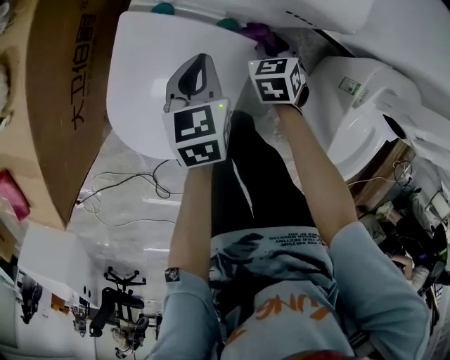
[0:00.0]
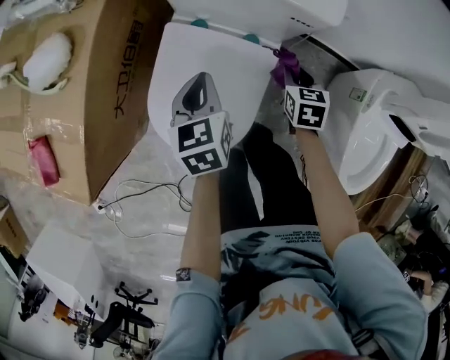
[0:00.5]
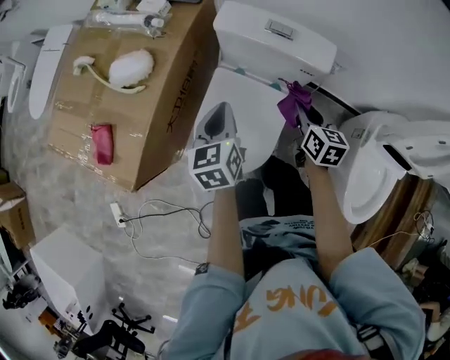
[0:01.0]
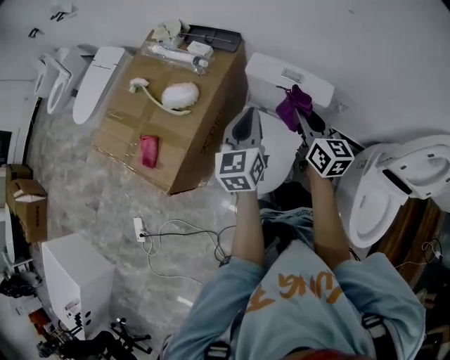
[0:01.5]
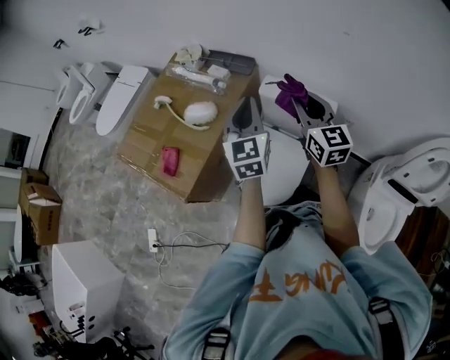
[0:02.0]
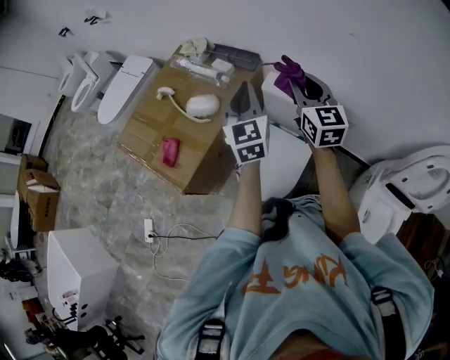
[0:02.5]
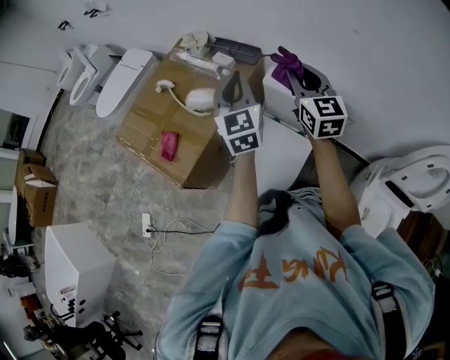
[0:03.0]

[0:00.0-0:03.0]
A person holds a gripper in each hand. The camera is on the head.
0:00.0 to 0:01.5: Both grippers travel together upward, about 50 cm. The left gripper tilts its fingers roughly 40 degrees upward, while the right gripper tips its fingers upward by about 50 degrees.
0:01.5 to 0:03.0: The grippers both shift upward by some 15 cm. The right gripper rotates approximately 30 degrees; the left gripper turns by approximately 30 degrees.

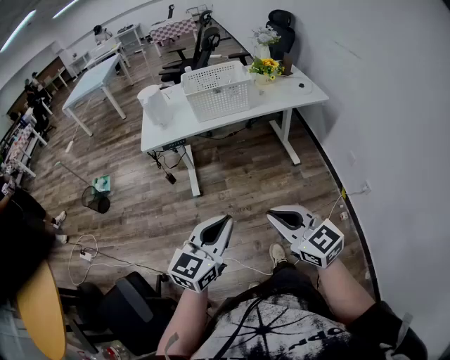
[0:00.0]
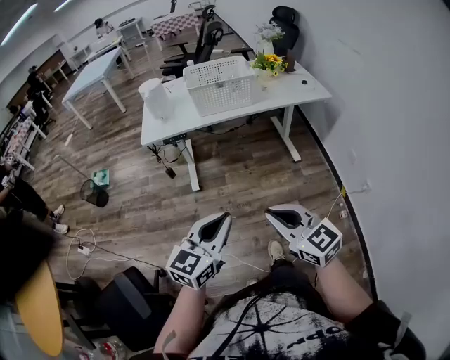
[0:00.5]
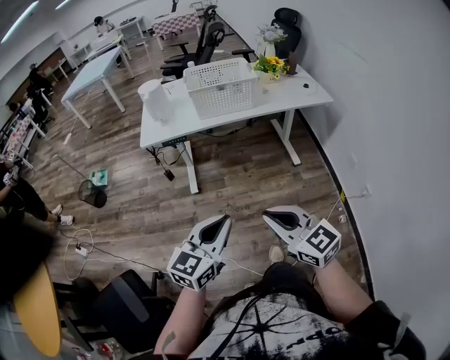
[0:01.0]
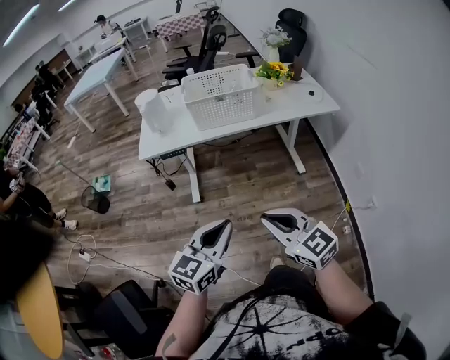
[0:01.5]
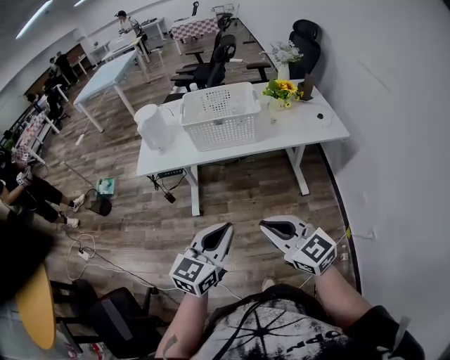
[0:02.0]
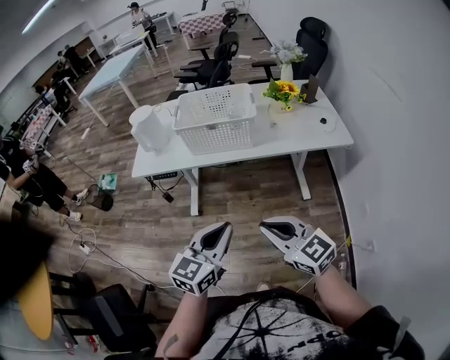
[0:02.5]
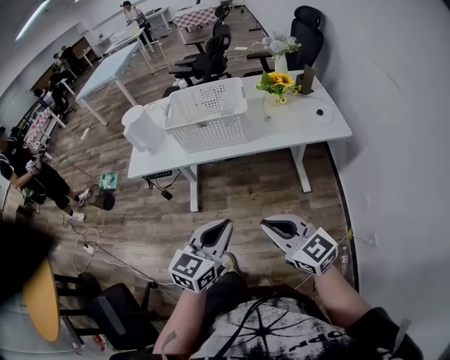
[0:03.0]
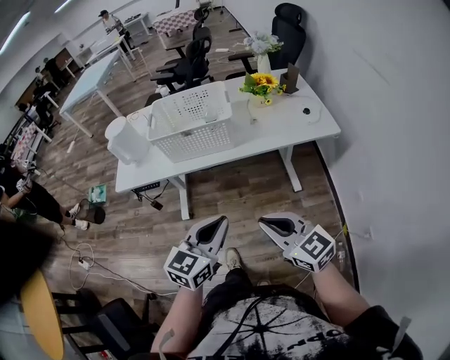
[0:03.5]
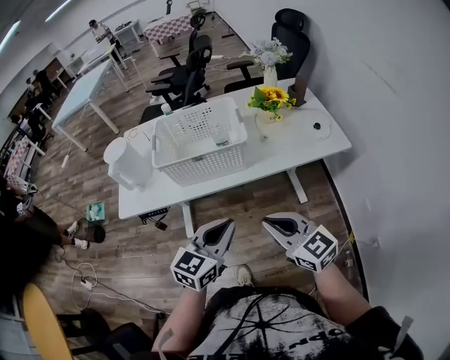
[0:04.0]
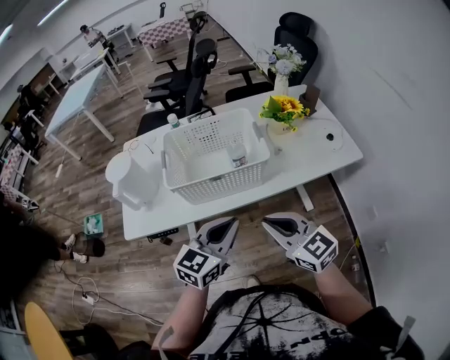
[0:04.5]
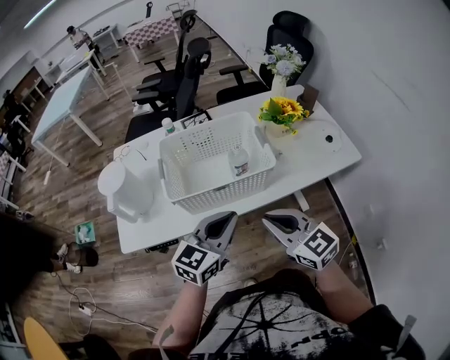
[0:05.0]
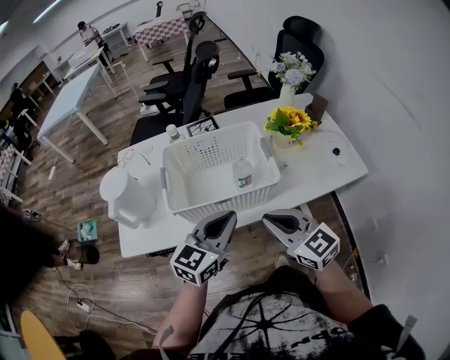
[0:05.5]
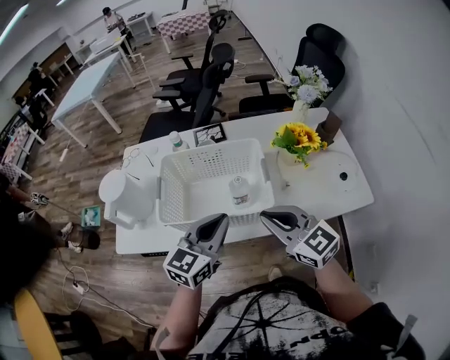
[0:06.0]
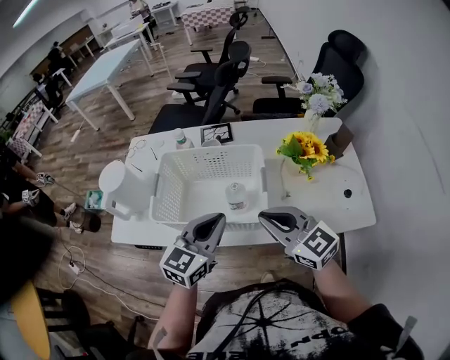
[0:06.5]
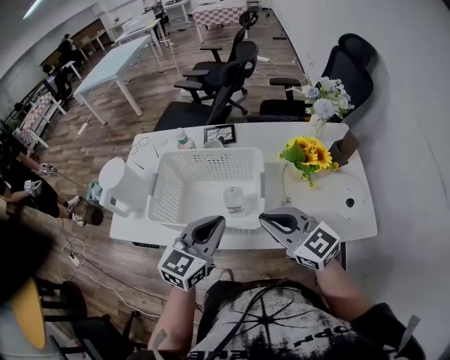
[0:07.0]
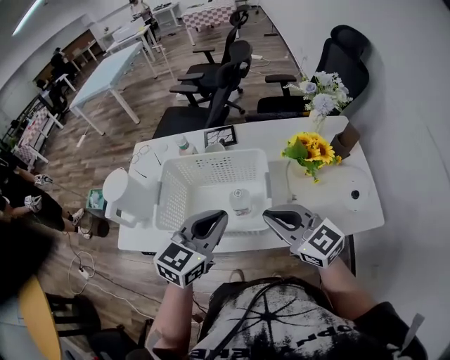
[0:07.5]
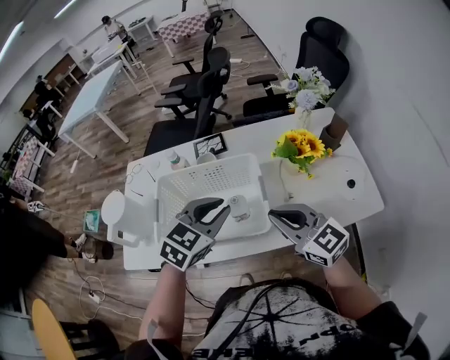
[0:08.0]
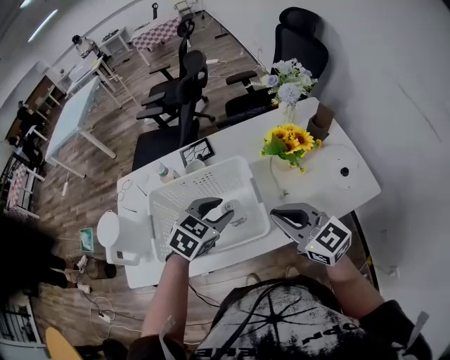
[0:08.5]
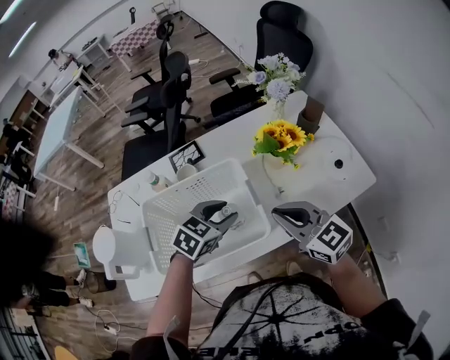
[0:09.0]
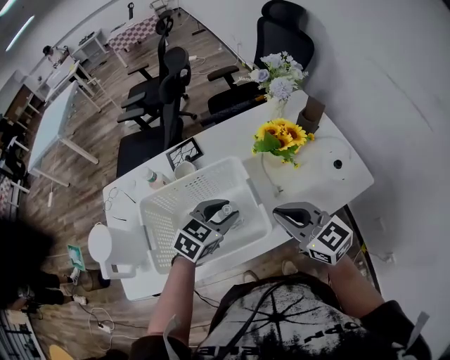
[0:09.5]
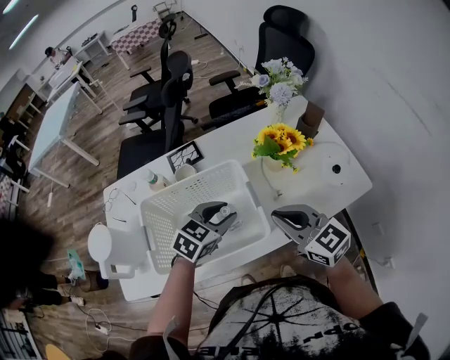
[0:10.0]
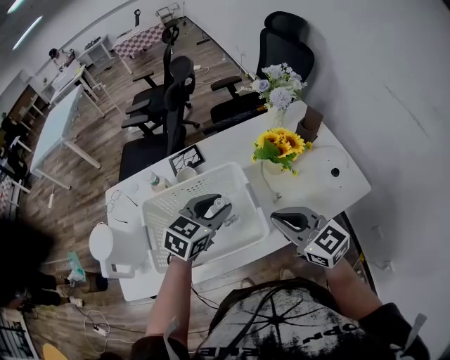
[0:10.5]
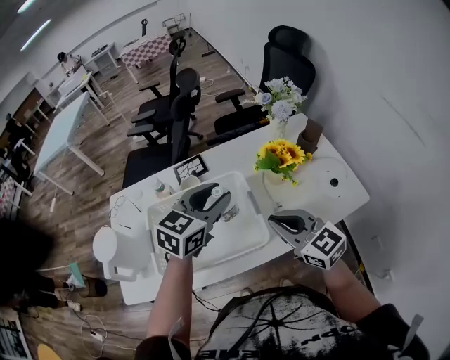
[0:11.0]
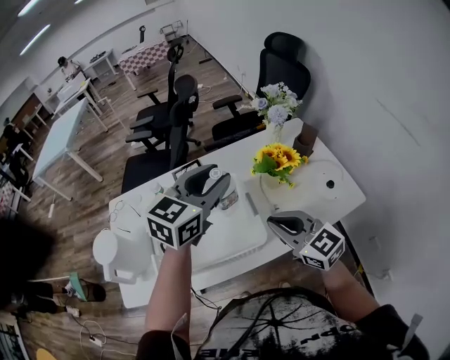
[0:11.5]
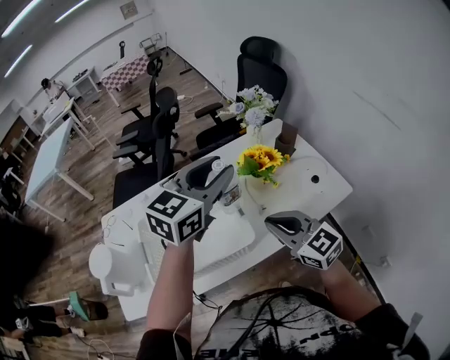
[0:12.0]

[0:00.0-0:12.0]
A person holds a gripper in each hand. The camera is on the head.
0:00.0 to 0:02.0: The left gripper heads forward and to the right, covering about 20 cm; the right gripper moves forward, approximately 20 cm.
0:02.0 to 0:04.0: The grippers both shift forward by about 20 cm.
0:04.0 to 0:06.0: The grippers both shift forward by approximately 25 cm.
0:06.0 to 0:08.0: The right gripper travels forward and to the right by about 10 cm. Meanwhile the left gripper shifts roughly 10 cm forward, and changes its angle by some 30 degrees.
0:08.0 to 0:10.0: The left gripper shifts roughly 10 cm downward, and opens up.
0:10.0 to 0:12.0: The right gripper changes place by about 5 cm, while the left gripper moves upward, approximately 25 cm, and swivels approximately 30 degrees.

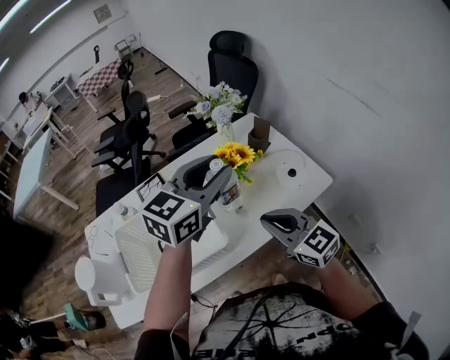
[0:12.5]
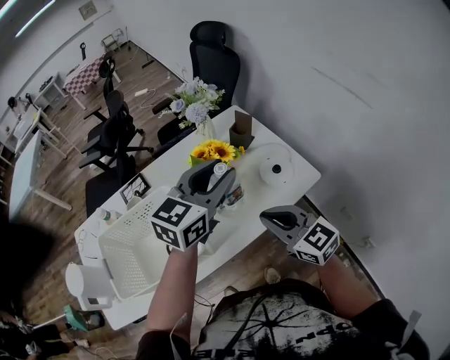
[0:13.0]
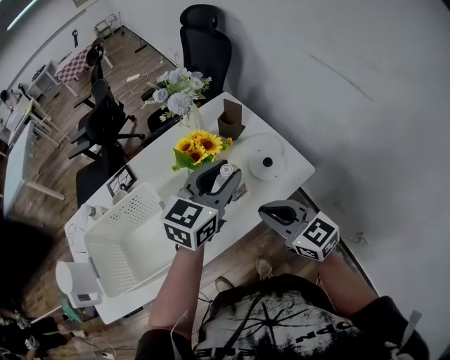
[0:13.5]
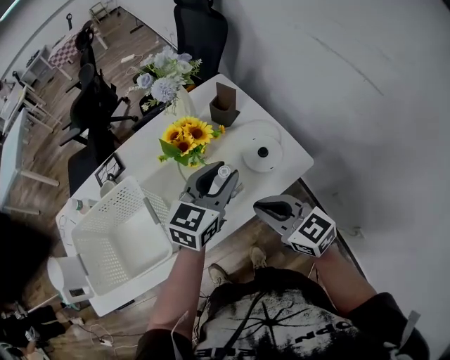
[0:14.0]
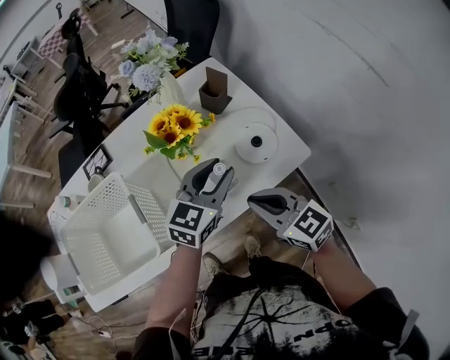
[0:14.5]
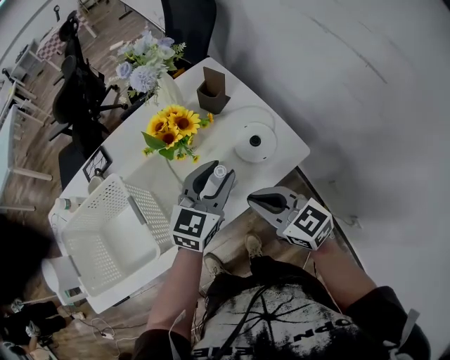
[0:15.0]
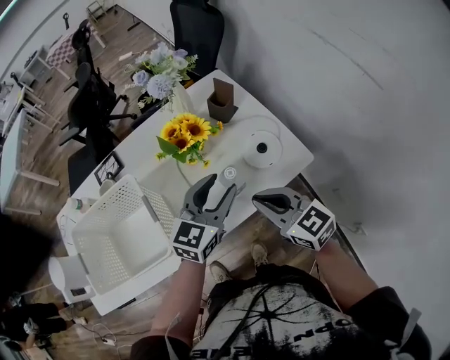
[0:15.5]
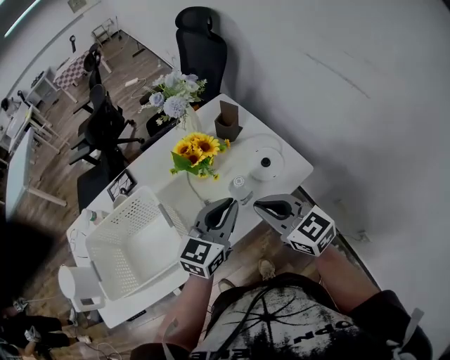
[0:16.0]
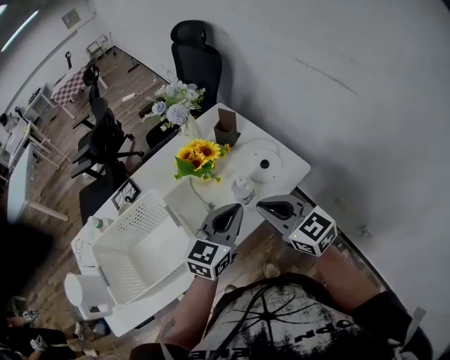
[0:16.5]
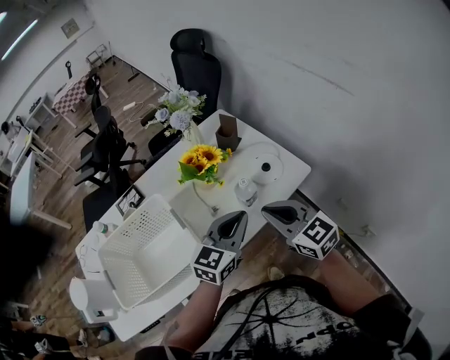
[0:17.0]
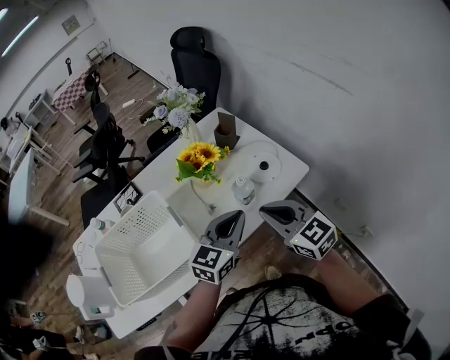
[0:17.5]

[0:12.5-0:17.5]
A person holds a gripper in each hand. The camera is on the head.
0:12.5 to 0:15.0: The right gripper travels to the right and downward by about 15 cm, while the left gripper moves downward and to the right, about 25 cm.
0:15.0 to 0:17.5: The left gripper moves backward, some 10 cm, and closes its fingers. Meanwhile the right gripper heads upward, covering approximately 5 cm.

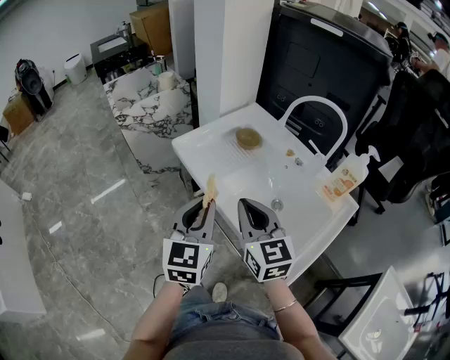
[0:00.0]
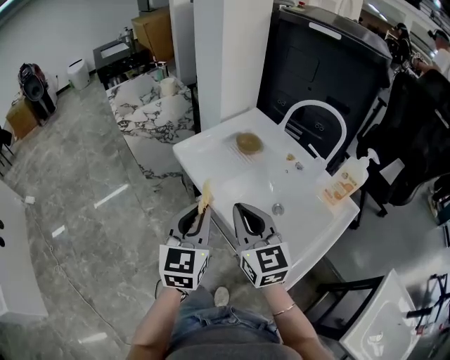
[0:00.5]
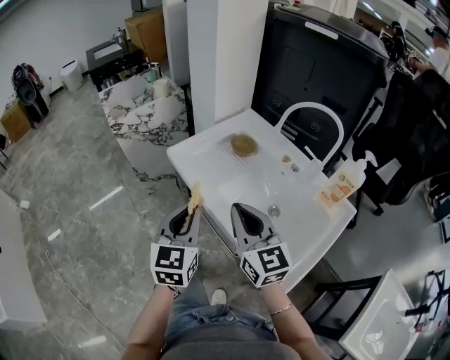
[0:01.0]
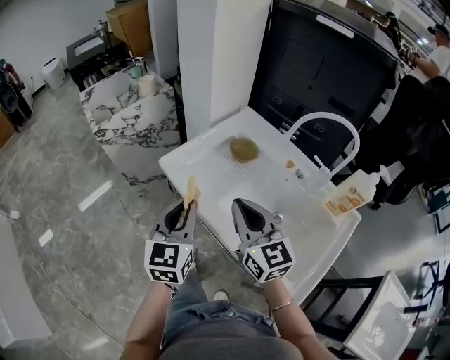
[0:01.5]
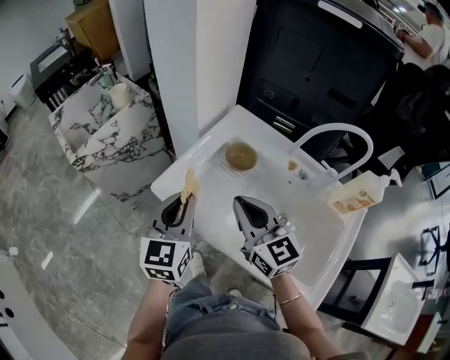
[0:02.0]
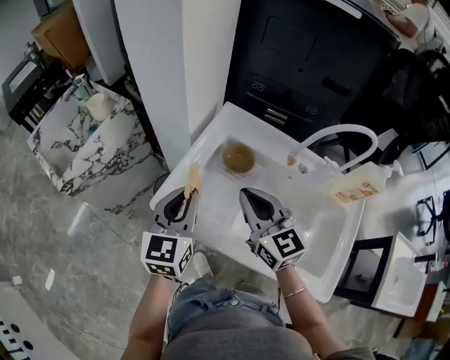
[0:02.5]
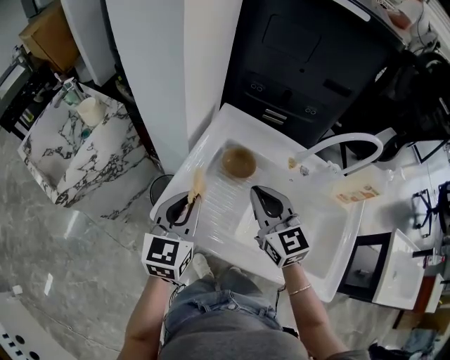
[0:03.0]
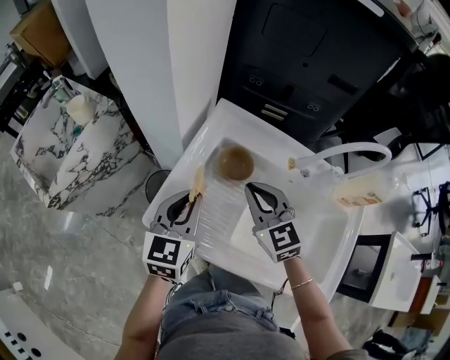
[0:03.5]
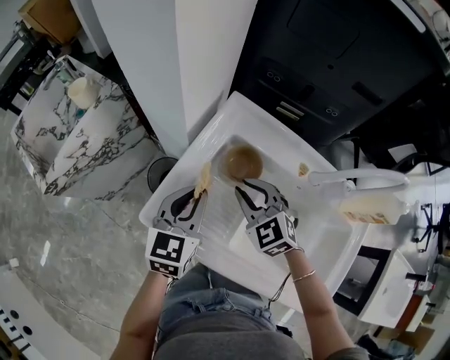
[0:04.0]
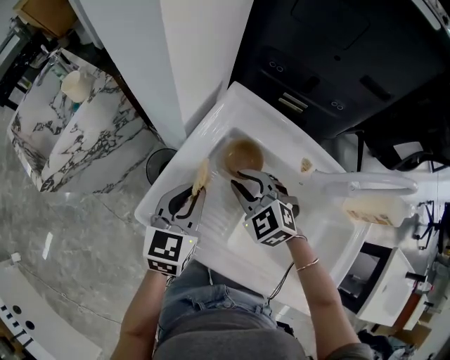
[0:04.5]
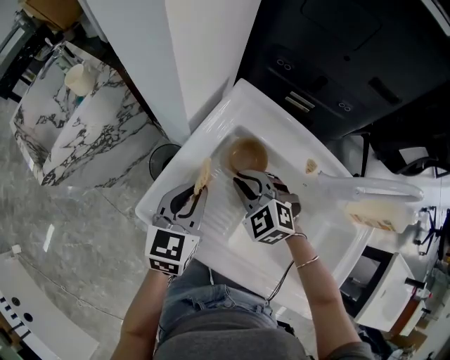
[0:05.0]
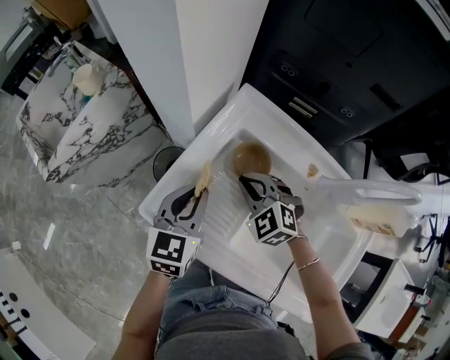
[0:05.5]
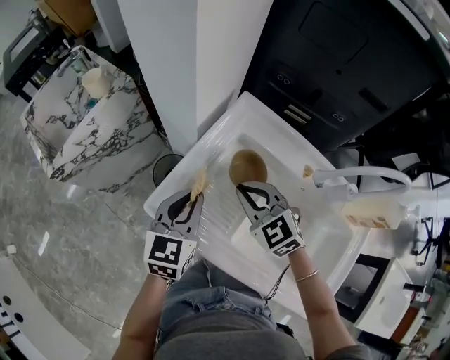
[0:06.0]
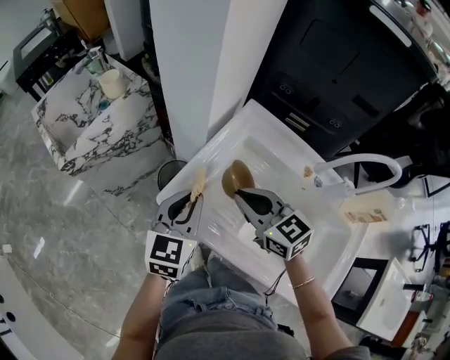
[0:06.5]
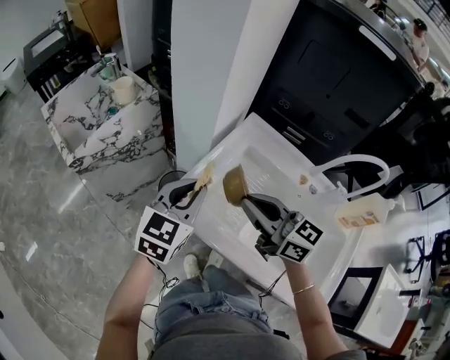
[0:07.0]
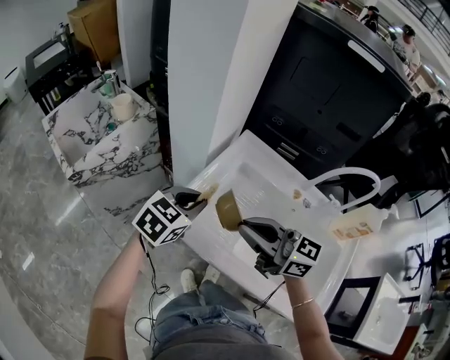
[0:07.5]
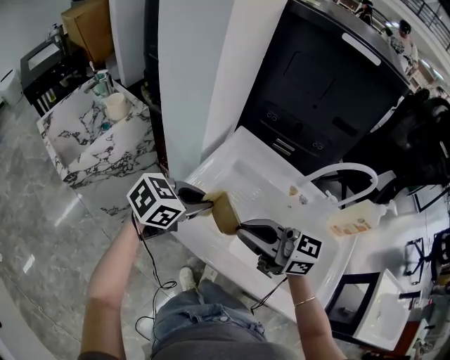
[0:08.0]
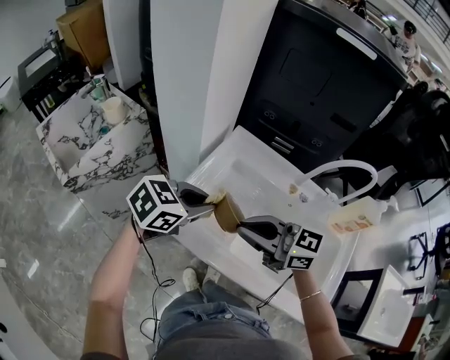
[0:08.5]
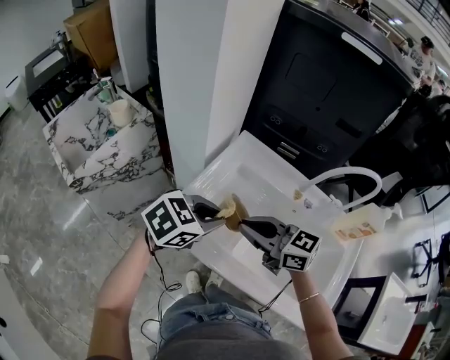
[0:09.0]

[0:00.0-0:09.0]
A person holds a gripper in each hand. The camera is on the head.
0:00.0 to 0:02.0: Both grippers travel together forward, some 20 cm.
0:02.0 to 0:04.5: The grippers both shift forward and downward by some 20 cm. The right gripper points its fingers some 40 degrees further downward. The left gripper rotates approximately 20 degrees.
0:04.5 to 0:07.0: The left gripper goes some 10 cm upward, to the left and backward, while the right gripper travels upward and backward by about 20 cm, and tilts its fingers roughly 40 degrees upward.
0:07.0 to 0:09.0: The left gripper moves roughly 10 cm, and swivels approximately 40 degrees.
